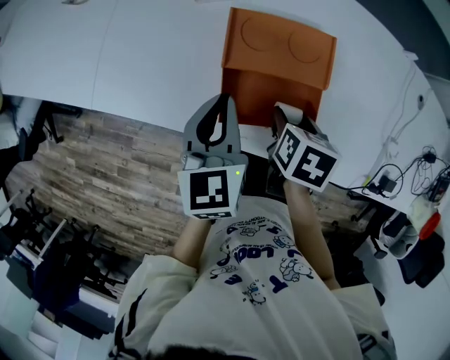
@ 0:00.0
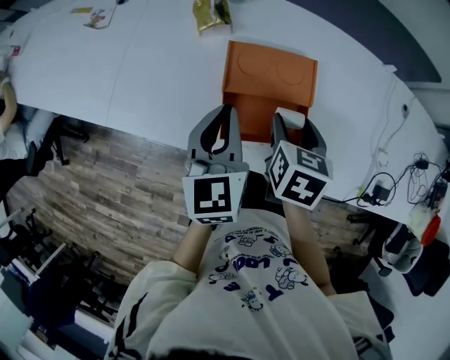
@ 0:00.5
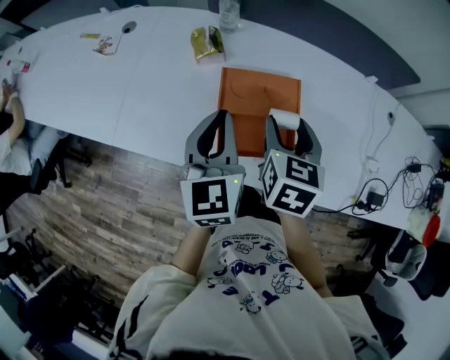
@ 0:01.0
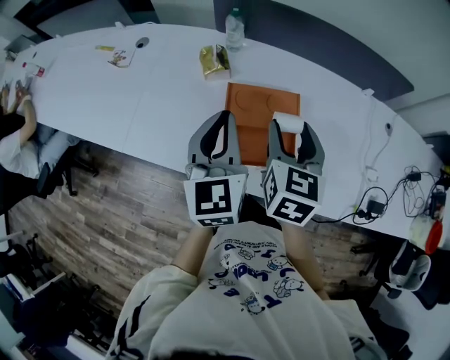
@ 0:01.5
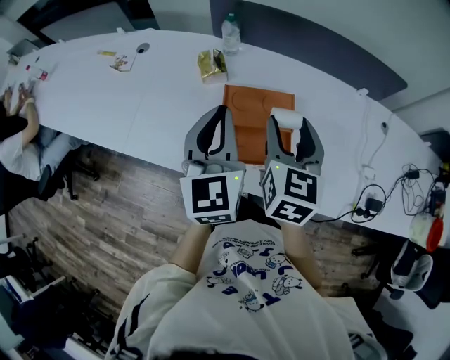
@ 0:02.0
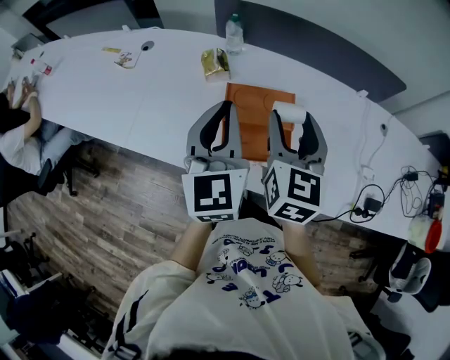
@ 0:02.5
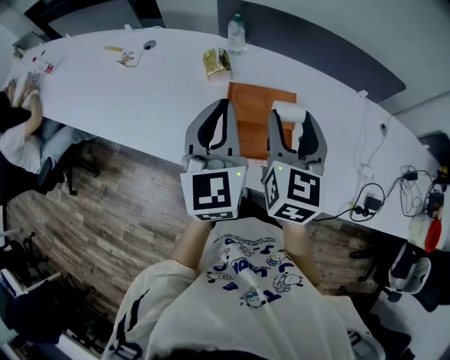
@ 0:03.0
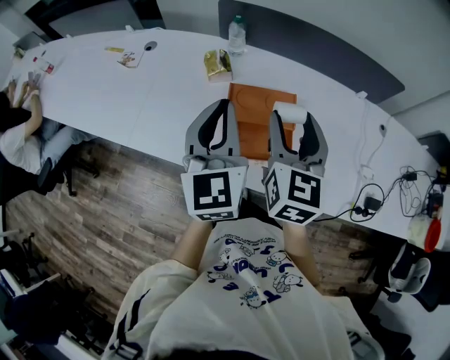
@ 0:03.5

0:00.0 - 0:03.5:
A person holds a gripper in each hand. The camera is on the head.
0:00.0 - 0:02.0: The two grippers go some 20 cm upward. The right gripper points its fingers some 50 degrees further upward. The left gripper turns by about 30 degrees.
0:02.0 - 0:03.5: The grippers stay close to where they were, moving slightly.

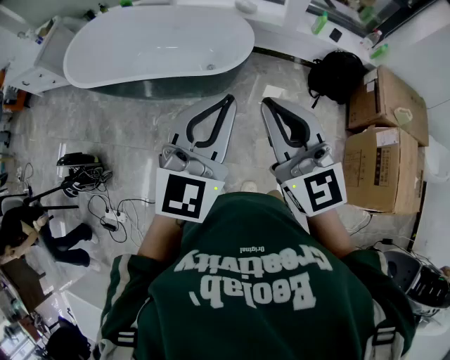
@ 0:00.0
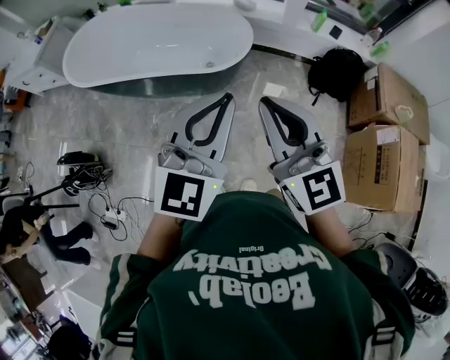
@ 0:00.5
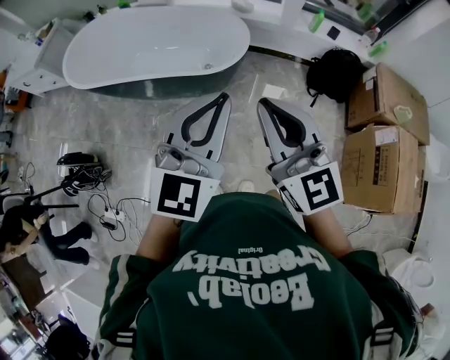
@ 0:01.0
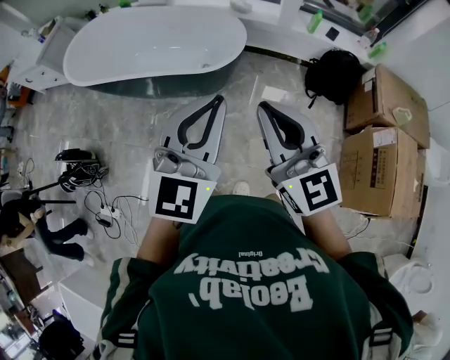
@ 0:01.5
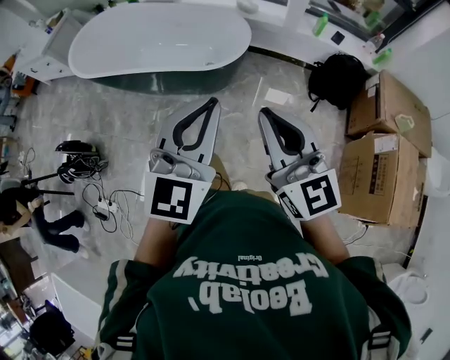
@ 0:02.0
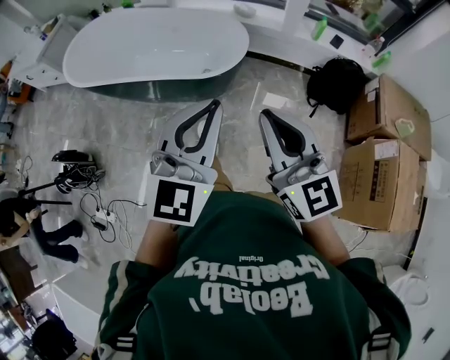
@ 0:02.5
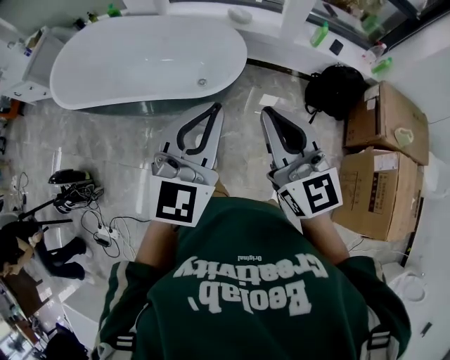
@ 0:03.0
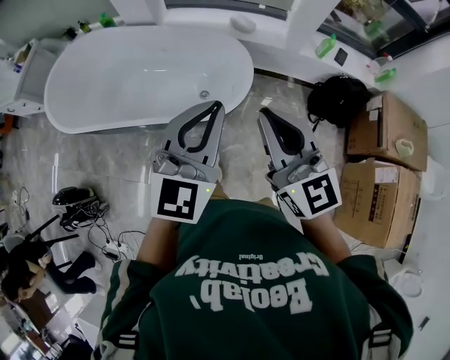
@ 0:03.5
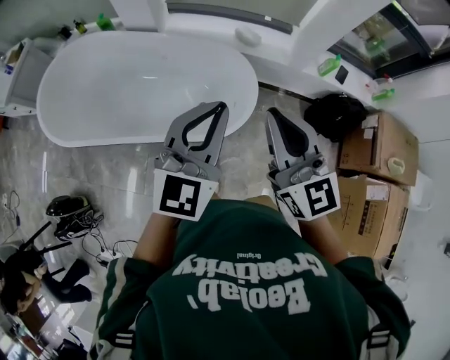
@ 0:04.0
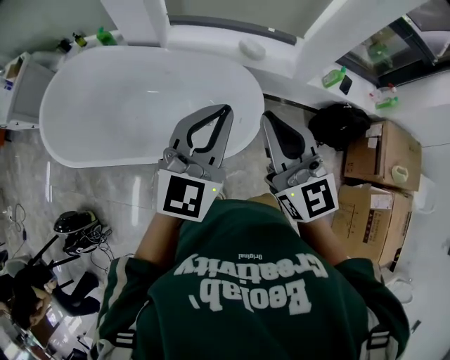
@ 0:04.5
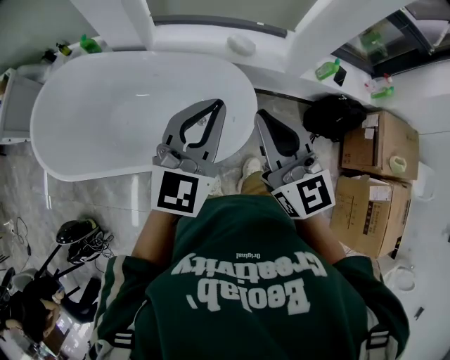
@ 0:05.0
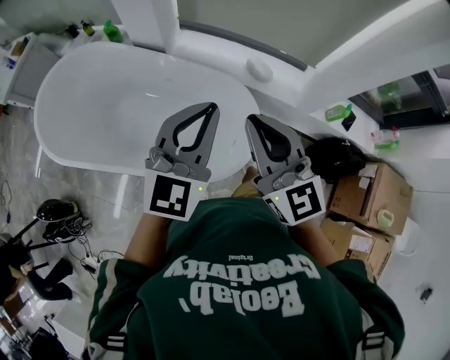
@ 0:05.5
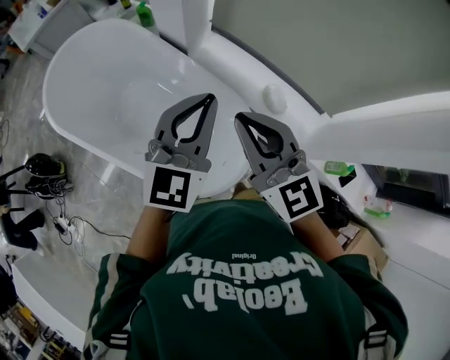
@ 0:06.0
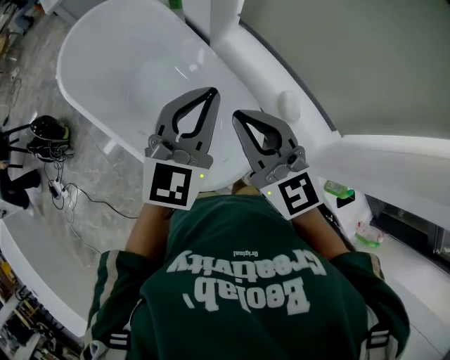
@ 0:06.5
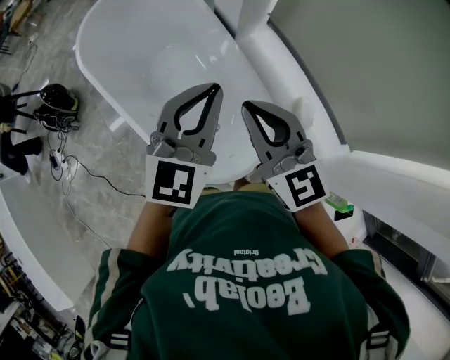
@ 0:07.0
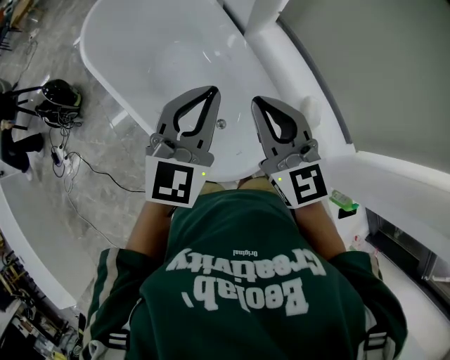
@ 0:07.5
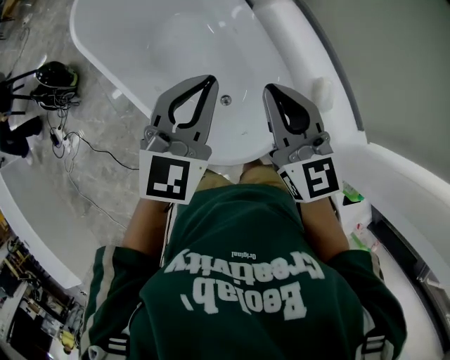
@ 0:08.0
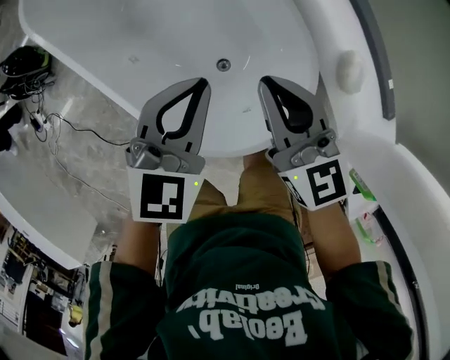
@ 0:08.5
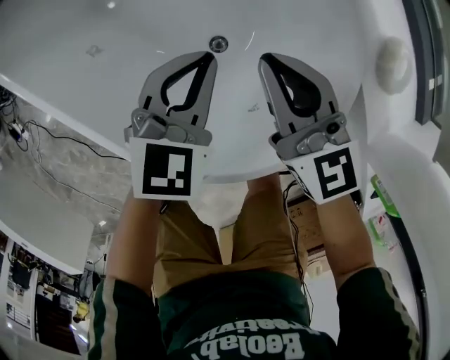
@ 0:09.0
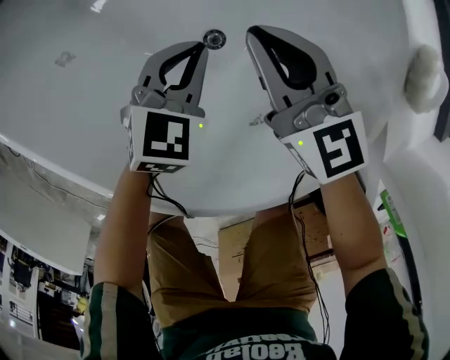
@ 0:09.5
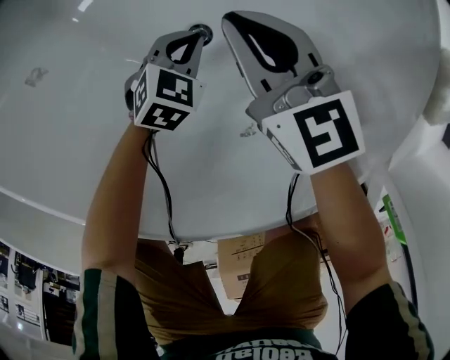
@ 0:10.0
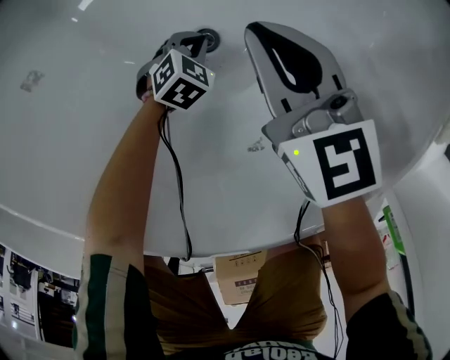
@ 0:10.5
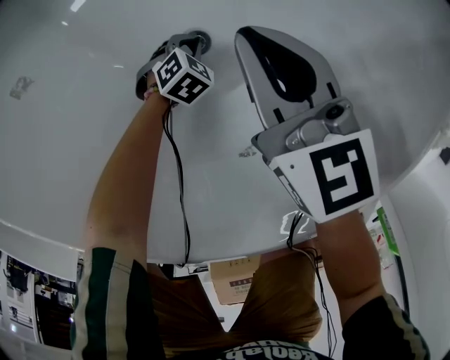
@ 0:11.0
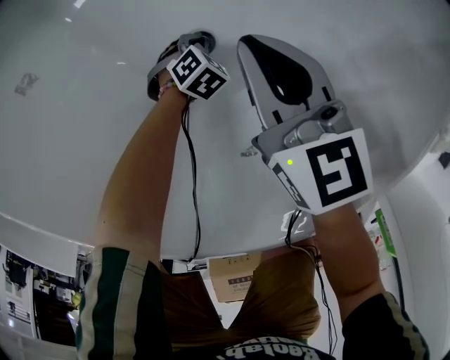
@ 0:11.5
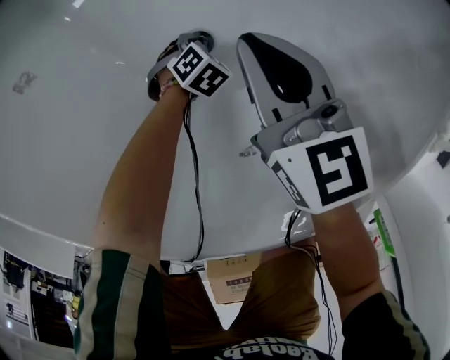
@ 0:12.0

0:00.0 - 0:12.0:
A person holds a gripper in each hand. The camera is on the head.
0:00.0 - 0:02.0: The left gripper heads to the right, covering some 5 cm, while the right gripper shifts roughly 10 cm to the right.
0:02.0 - 0:04.0: The pair of grippers is taken forward, approximately 40 cm.
0:04.0 - 0:06.0: The right gripper ends up about 30 cm from where it was, and swivels roughly 40 degrees. The left gripper shifts by approximately 30 cm, and turns by some 30 degrees.
0:06.0 - 0:08.0: The right gripper goes approximately 10 cm downward and forward, while the left gripper moves to the left and downward, roughly 10 cm, and changes its angle by approximately 20 degrees.
0:08.0 - 0:10.0: The grippers both shift downward by roughly 60 cm. The left gripper points its fingers about 40 degrees further downward, while the right gripper rotates approximately 20 degrees.
0:10.0 - 0:12.0: The left gripper travels downward by roughly 15 cm, and turns by roughly 20 degrees.

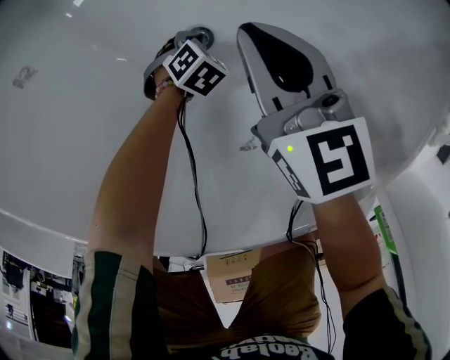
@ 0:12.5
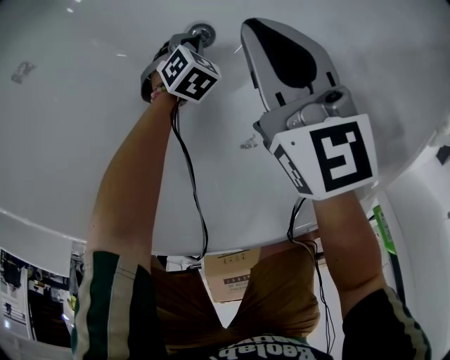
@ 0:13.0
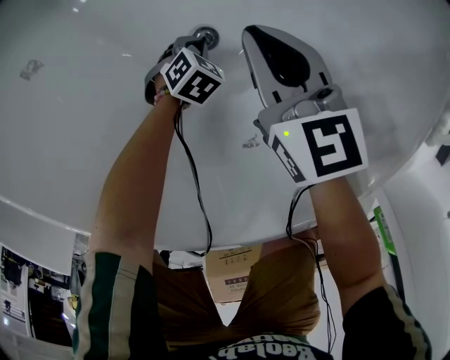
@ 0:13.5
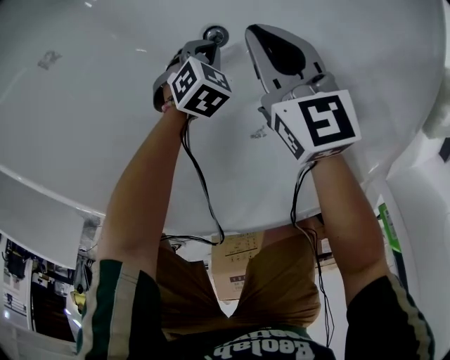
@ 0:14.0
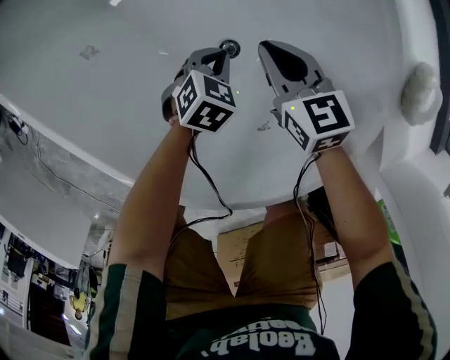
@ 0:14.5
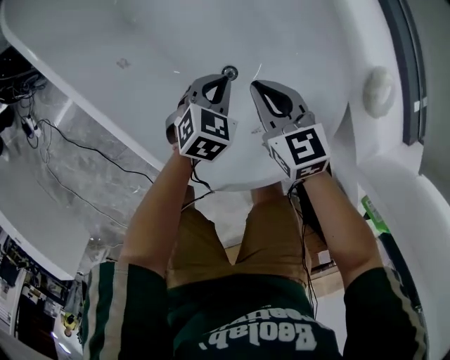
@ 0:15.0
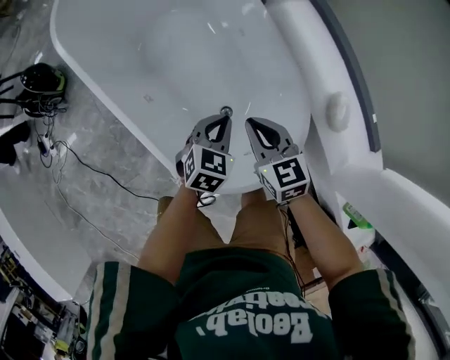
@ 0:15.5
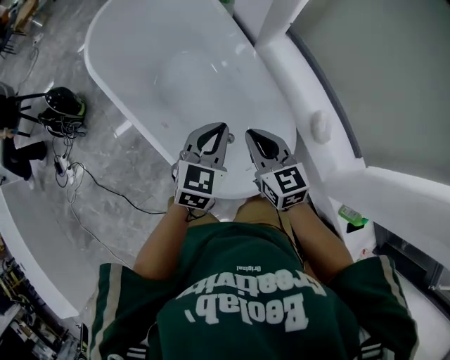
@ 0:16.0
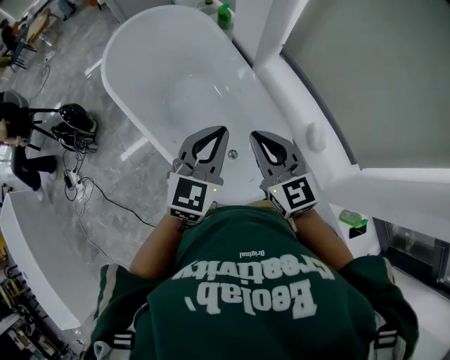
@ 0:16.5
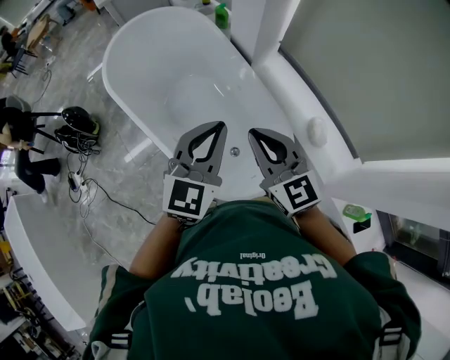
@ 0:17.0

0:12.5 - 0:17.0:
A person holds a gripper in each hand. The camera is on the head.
0:12.5 - 0:14.5: The left gripper goes approximately 20 cm upward.
0:14.5 - 0:17.0: The two grippers go roughly 70 cm upward. The left gripper tilts its fingers approximately 50 degrees upward. The right gripper swivels roughly 40 degrees.

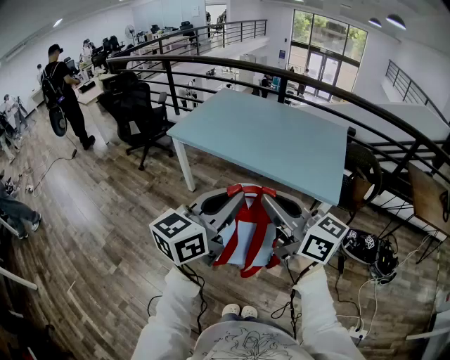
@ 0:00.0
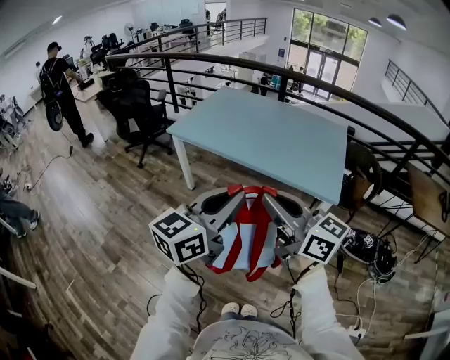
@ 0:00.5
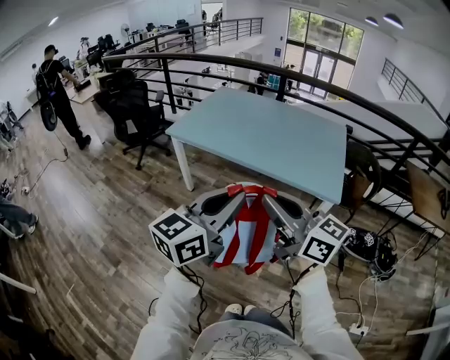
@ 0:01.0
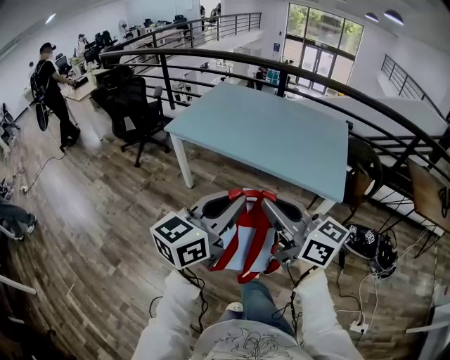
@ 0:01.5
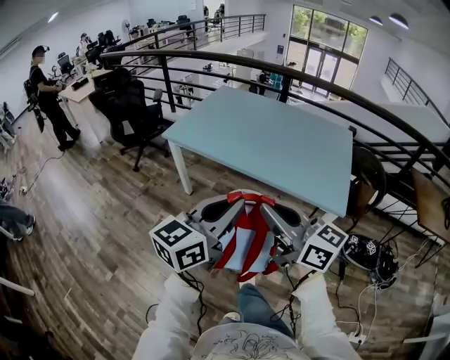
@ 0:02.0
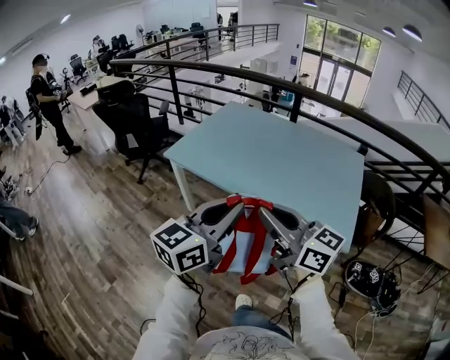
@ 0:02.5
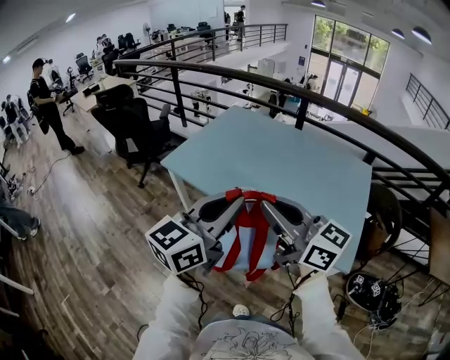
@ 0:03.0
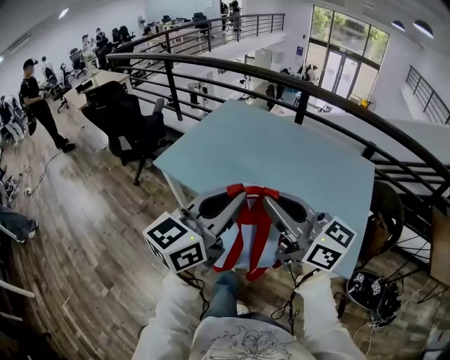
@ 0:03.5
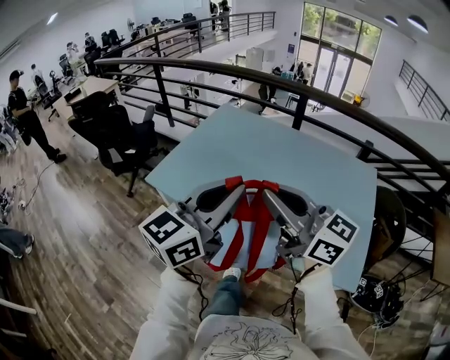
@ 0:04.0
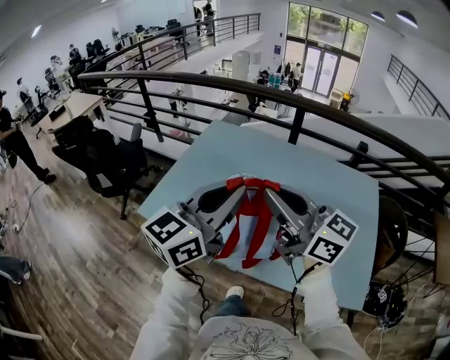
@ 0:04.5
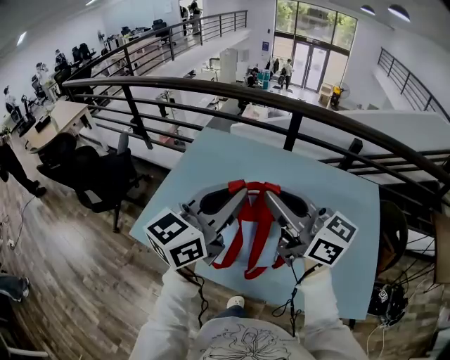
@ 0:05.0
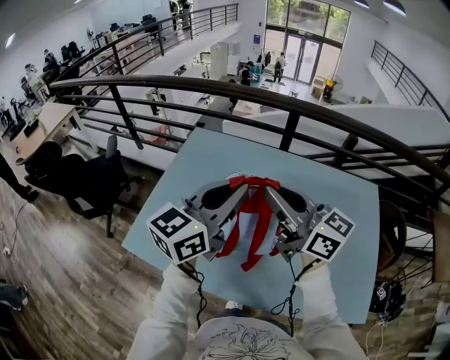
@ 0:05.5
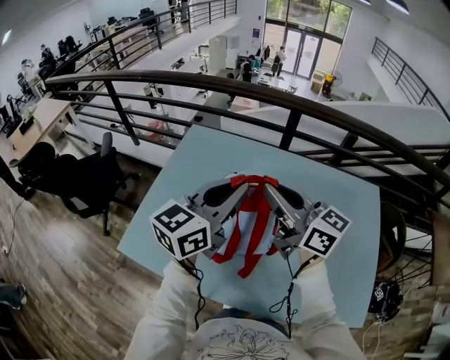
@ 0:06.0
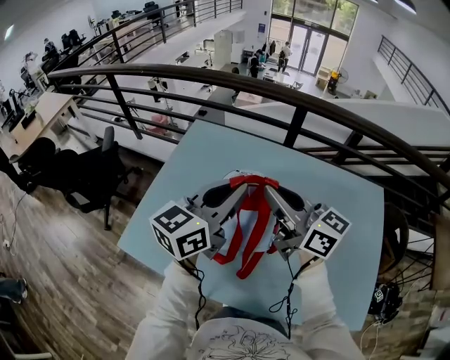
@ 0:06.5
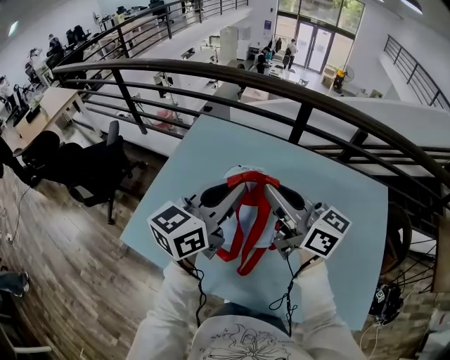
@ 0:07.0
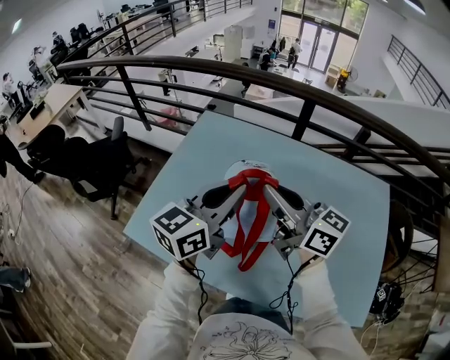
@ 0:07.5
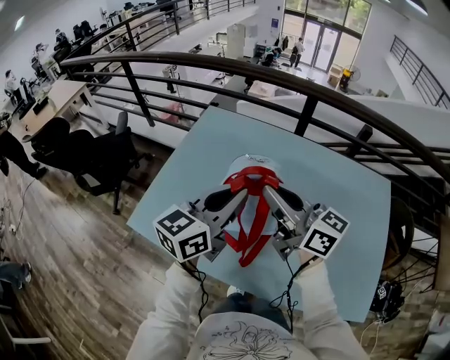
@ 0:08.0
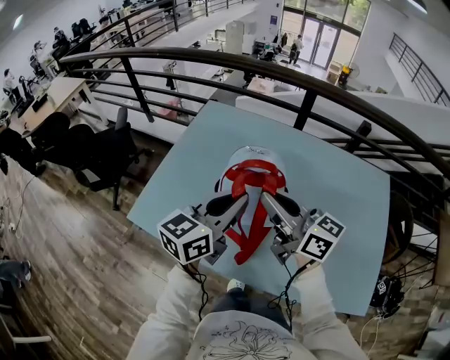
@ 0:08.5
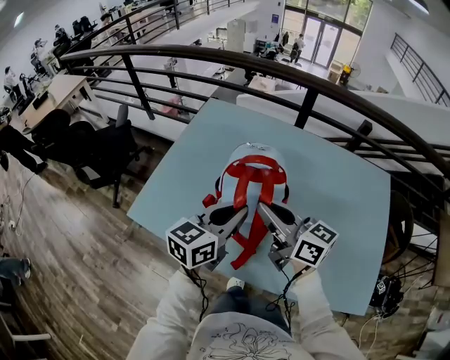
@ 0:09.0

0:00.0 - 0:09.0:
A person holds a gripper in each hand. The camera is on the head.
0:00.0 - 0:02.0: Both grippers travel together forward, roughly 10 cm.
0:02.0 - 0:04.5: The two grippers travel together, forward, approximately 60 cm.
0:04.5 - 0:07.0: Both grippers travel together forward, approximately 25 cm.
0:07.0 - 0:09.0: Both grippers travel together backward and downward, roughly 15 cm.
